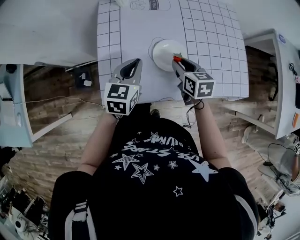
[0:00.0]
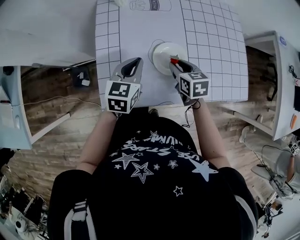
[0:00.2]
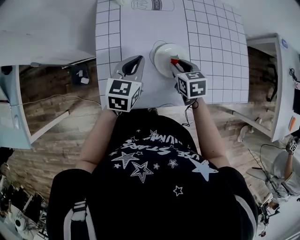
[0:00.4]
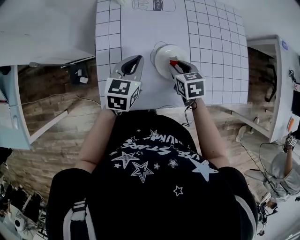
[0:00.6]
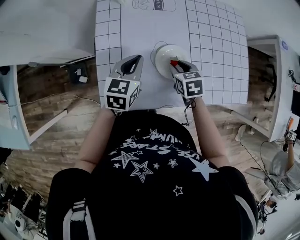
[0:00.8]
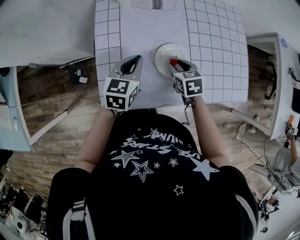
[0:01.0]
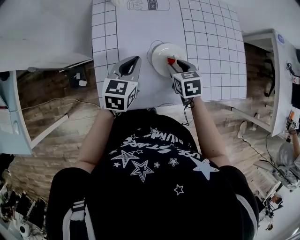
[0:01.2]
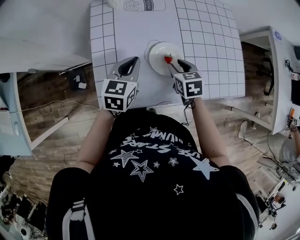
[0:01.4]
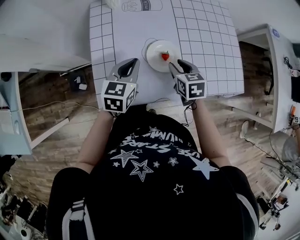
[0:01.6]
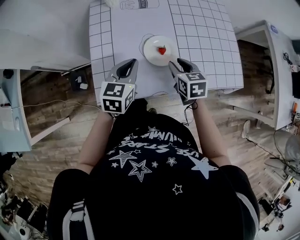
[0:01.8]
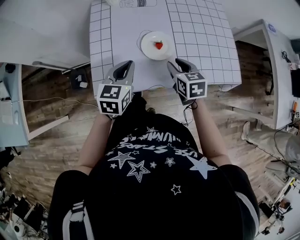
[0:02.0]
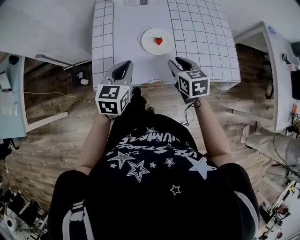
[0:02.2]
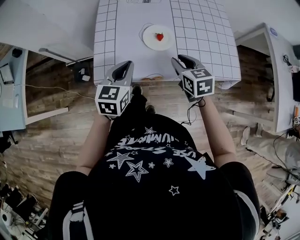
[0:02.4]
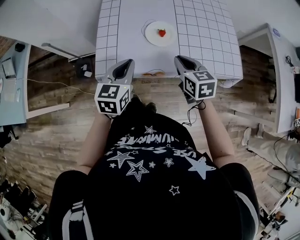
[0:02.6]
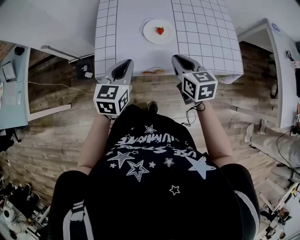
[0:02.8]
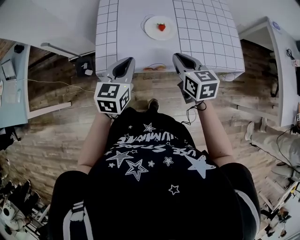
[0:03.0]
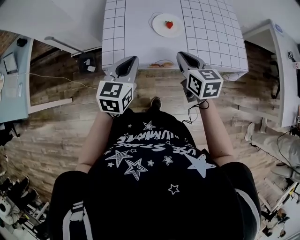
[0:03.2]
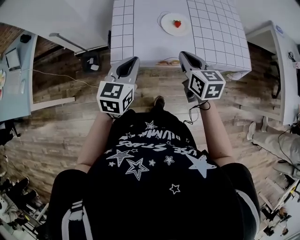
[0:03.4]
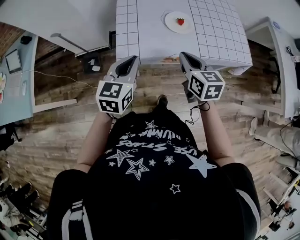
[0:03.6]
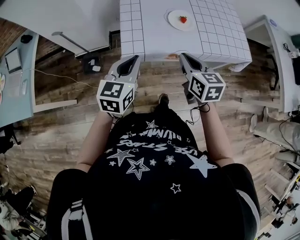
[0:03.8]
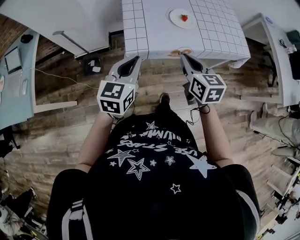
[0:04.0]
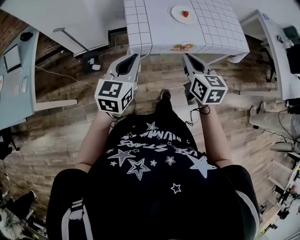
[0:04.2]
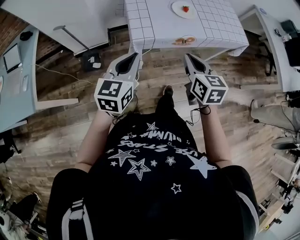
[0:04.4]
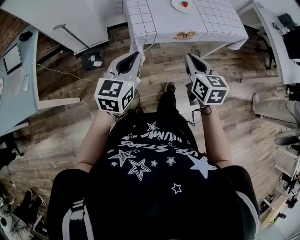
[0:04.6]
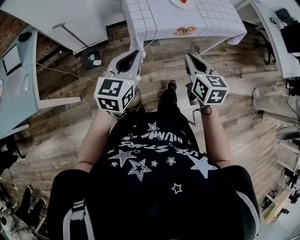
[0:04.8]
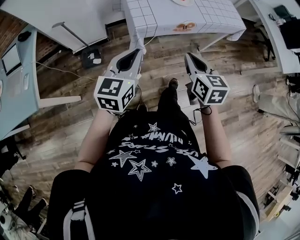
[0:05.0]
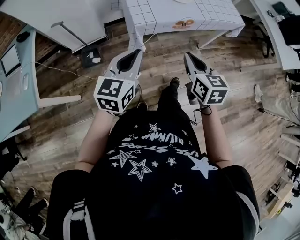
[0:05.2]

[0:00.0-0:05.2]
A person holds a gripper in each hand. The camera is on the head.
0:01.8 to 0:03.4: The left gripper goes roughly 15 cm backward and to the left; the right gripper travels upward, backward and to the left by about 15 cm, and closes up.
0:03.4 to 0:05.2: The two grippers go some 25 cm backward and to the left.

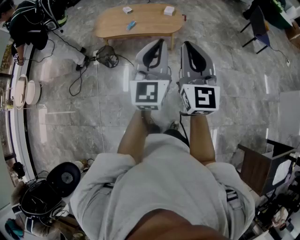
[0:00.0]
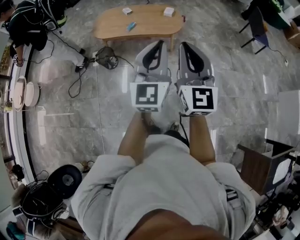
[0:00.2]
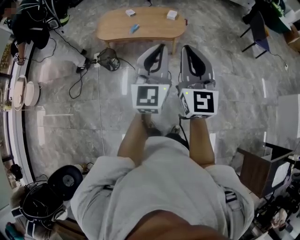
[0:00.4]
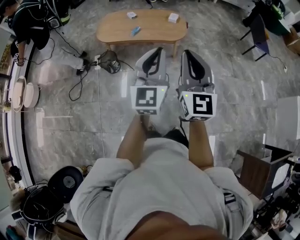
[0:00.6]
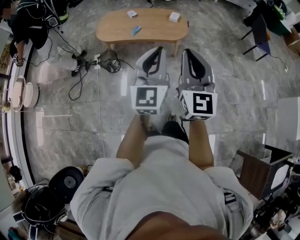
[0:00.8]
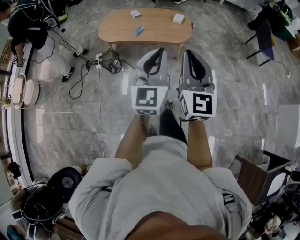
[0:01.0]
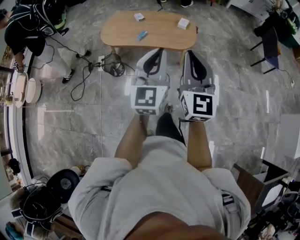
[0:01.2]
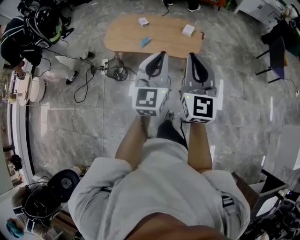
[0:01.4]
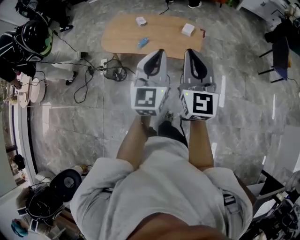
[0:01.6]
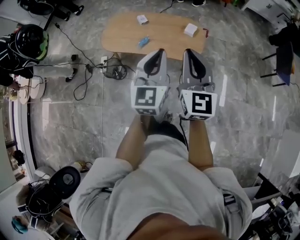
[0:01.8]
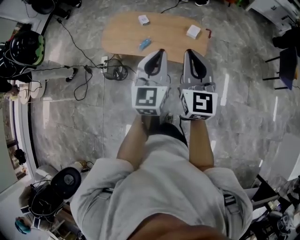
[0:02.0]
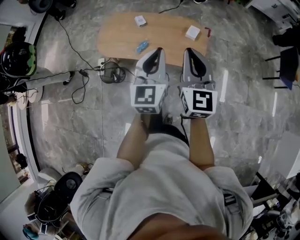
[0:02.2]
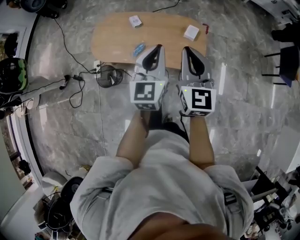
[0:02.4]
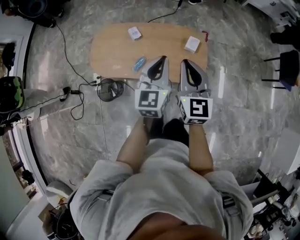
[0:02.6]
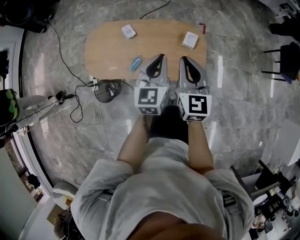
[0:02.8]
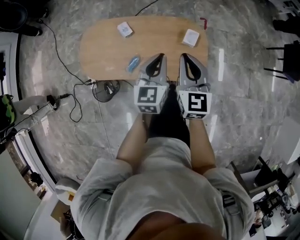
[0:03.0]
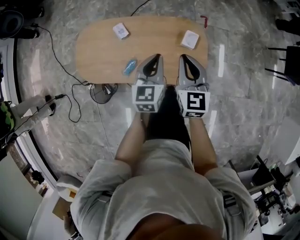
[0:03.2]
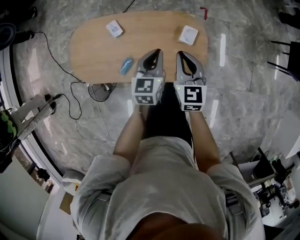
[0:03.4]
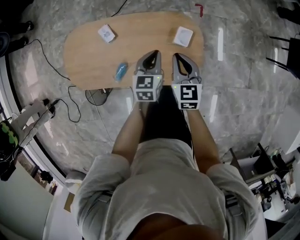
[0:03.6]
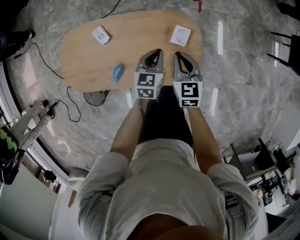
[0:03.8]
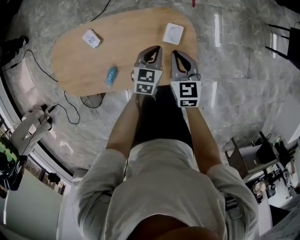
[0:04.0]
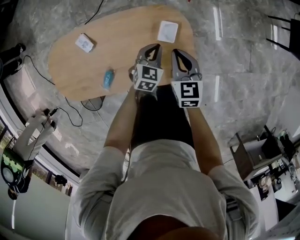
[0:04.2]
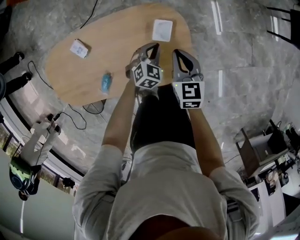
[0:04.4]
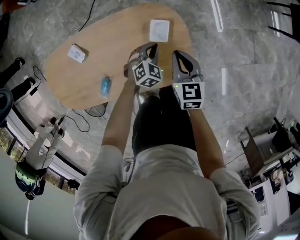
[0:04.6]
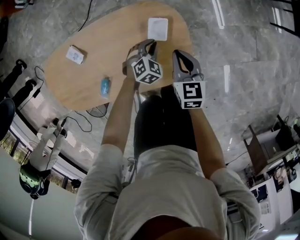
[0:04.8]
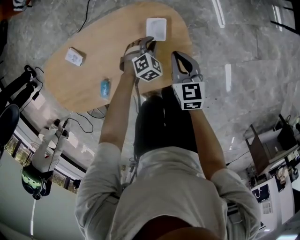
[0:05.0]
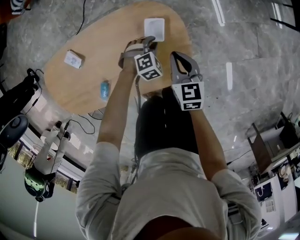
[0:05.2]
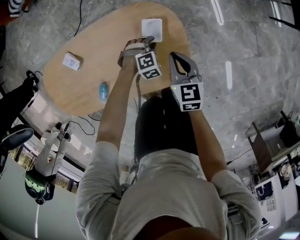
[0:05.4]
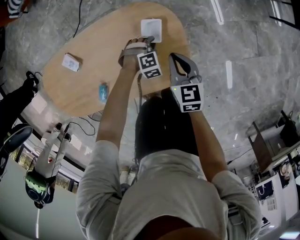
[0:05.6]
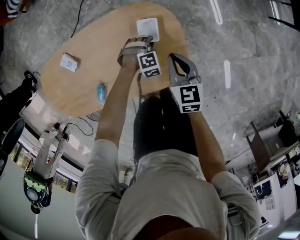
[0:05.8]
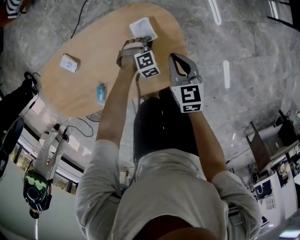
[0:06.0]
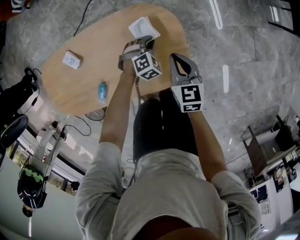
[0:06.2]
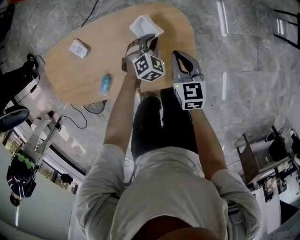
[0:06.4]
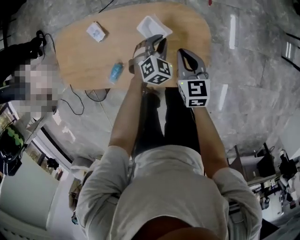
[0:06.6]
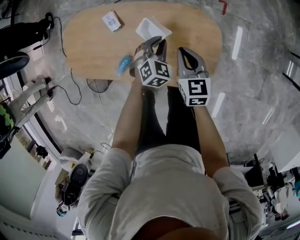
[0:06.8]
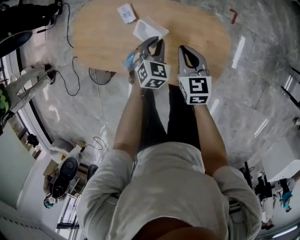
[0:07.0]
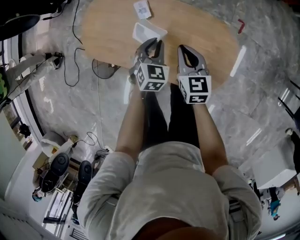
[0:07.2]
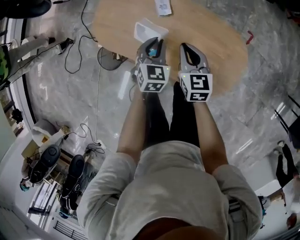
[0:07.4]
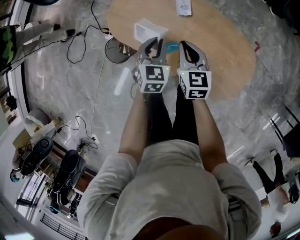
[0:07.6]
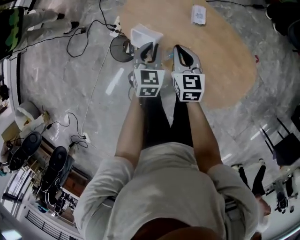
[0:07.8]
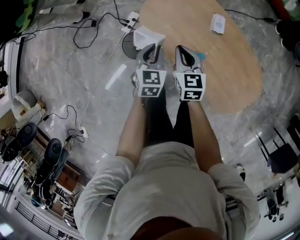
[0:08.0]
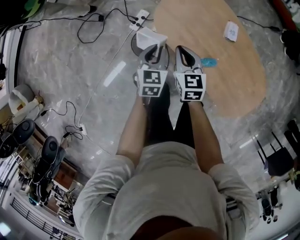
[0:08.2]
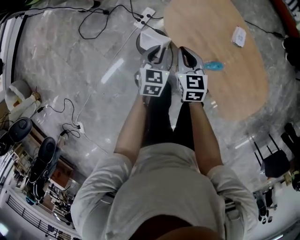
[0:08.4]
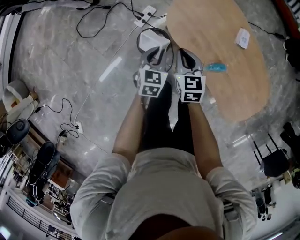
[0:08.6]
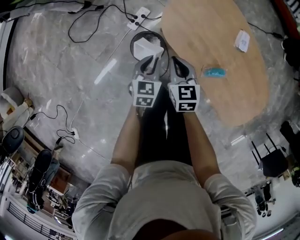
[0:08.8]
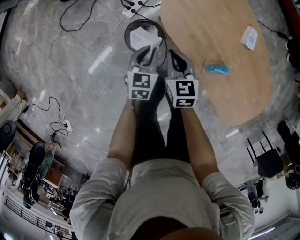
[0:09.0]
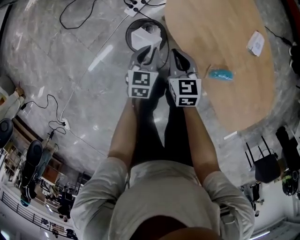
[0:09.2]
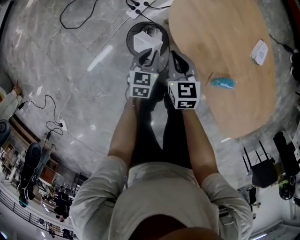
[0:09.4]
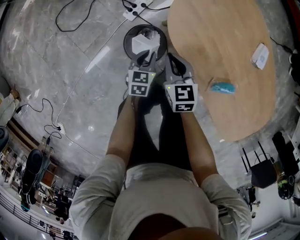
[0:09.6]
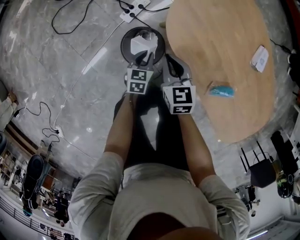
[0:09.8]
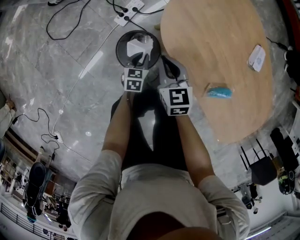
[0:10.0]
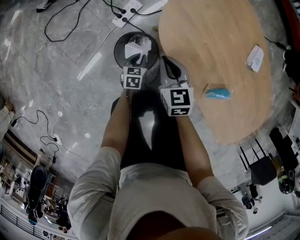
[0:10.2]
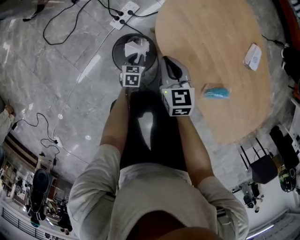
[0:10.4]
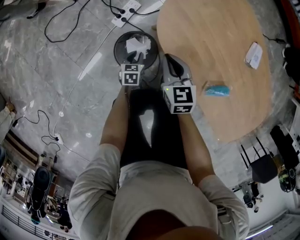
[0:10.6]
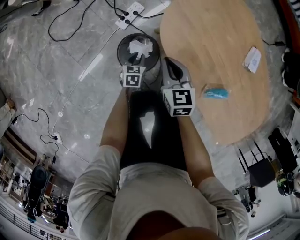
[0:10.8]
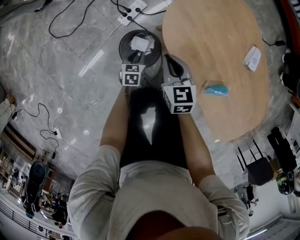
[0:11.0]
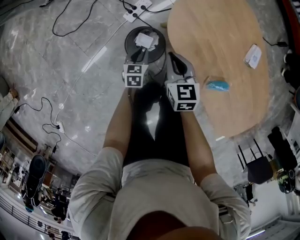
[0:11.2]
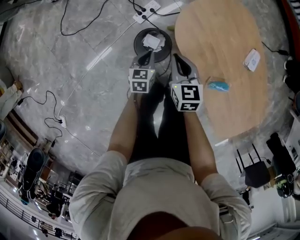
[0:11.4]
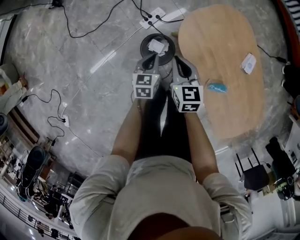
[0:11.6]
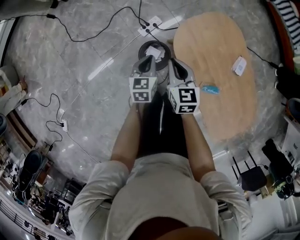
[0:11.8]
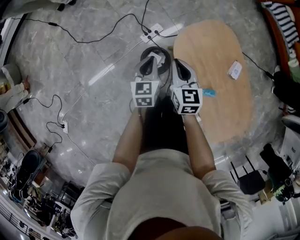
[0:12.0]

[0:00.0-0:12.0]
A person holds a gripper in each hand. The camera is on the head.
0:00.0 to 0:01.6: Both grippers travel together forward, about 30 cm.
0:01.6 to 0:03.0: Both grippers are carried forward, roughly 40 cm. The two grippers go roughly 20 cm downward. The right gripper turns by some 20 degrees; the left gripper swivels approximately 20 degrees.
0:03.0 to 0:04.4: Both grippers move downward, forward and to the right, some 35 cm. The right gripper rotates approximately 20 degrees, while the left gripper rotates approximately 50 degrees.
0:04.4 to 0:06.0: The right gripper goes roughly 5 cm downward; the left gripper is displaced downward by roughly 15 cm, and swivels about 40 degrees.
0:06.0 to 0:07.6: Both grippers are carried about 40 cm. The right gripper turns by about 40 degrees. Meanwhile the left gripper rotates around the line of its fingers by about 90 degrees, counterclockwise from behind.
0:07.6 to 0:09.0: The grippers both shift to the left and downward by approximately 40 cm. The left gripper changes its angle by roughly 20 degrees, while the right gripper swivels approximately 20 degrees.
0:09.0 to 0:10.4: The left gripper shifts some 30 cm downward, while the right gripper shifts some 10 cm downward and forward.
0:10.4 to 0:12.0: The right gripper goes approximately 30 cm upward. The left gripper shifts roughly 50 cm upward, and changes its angle by approximately 30 degrees.

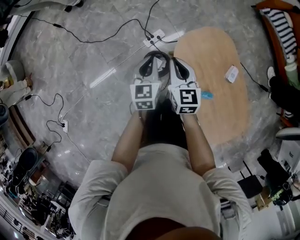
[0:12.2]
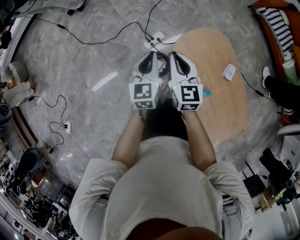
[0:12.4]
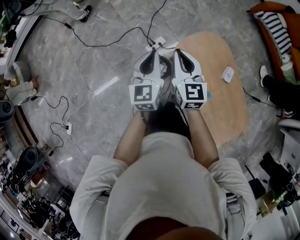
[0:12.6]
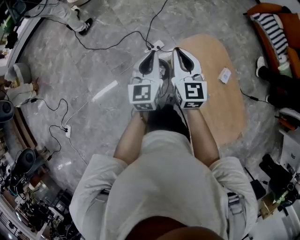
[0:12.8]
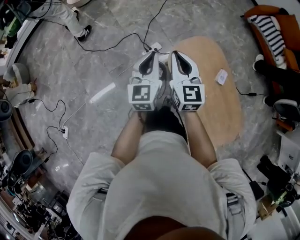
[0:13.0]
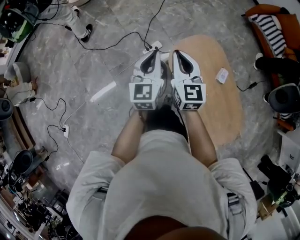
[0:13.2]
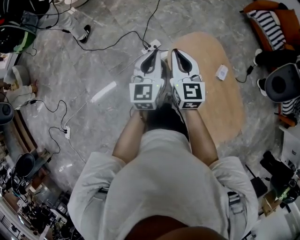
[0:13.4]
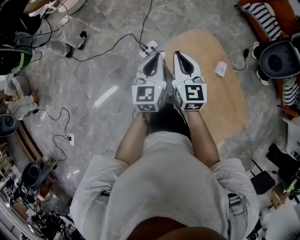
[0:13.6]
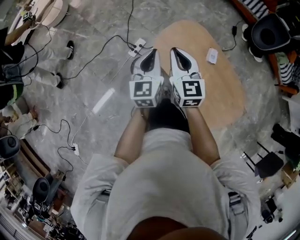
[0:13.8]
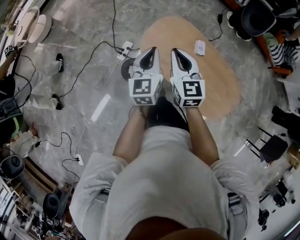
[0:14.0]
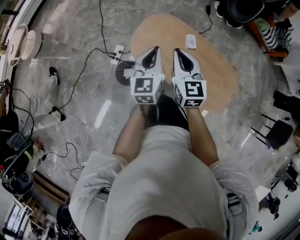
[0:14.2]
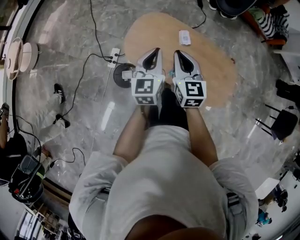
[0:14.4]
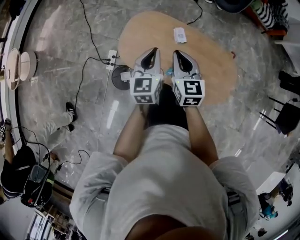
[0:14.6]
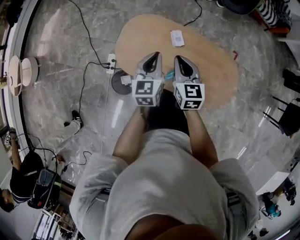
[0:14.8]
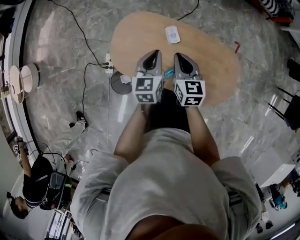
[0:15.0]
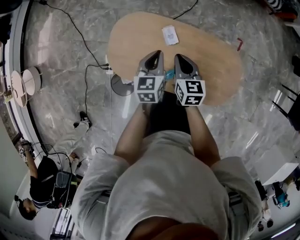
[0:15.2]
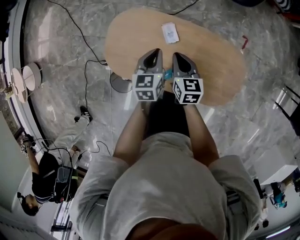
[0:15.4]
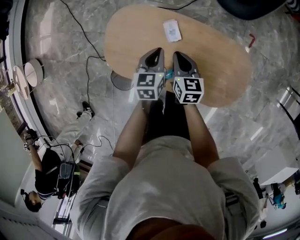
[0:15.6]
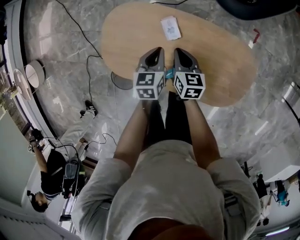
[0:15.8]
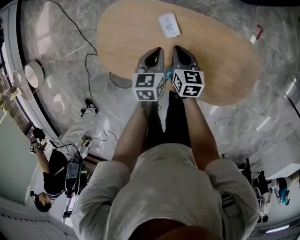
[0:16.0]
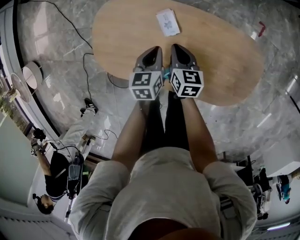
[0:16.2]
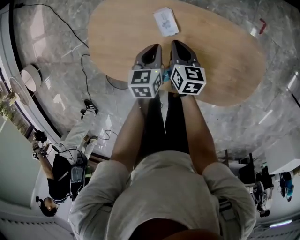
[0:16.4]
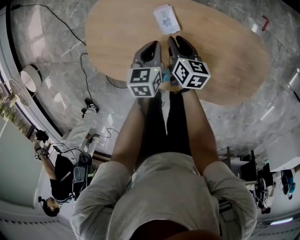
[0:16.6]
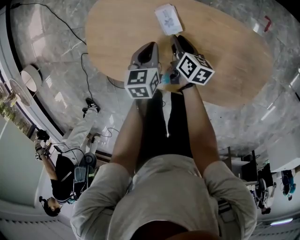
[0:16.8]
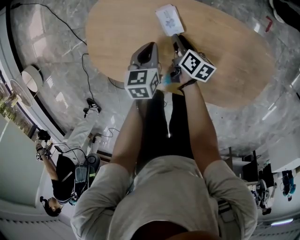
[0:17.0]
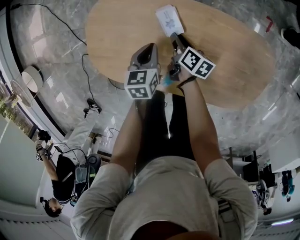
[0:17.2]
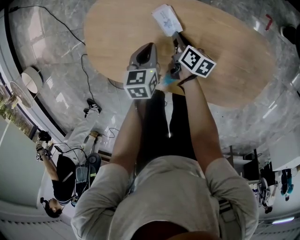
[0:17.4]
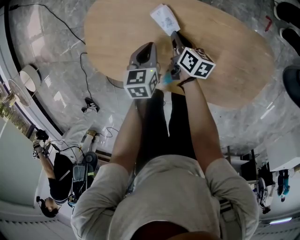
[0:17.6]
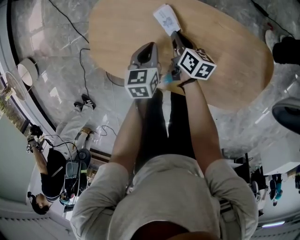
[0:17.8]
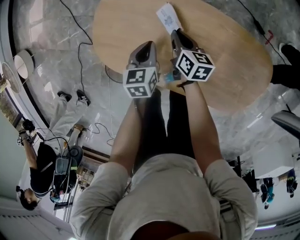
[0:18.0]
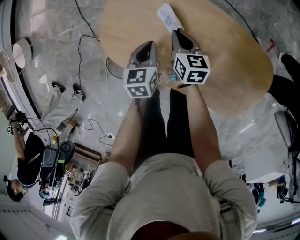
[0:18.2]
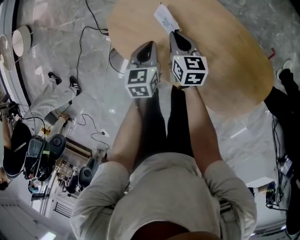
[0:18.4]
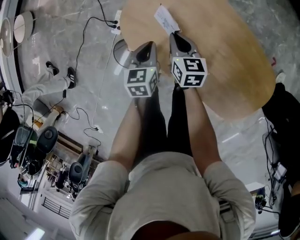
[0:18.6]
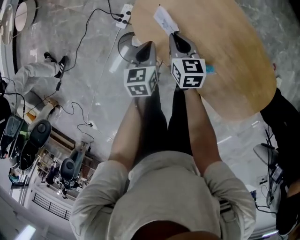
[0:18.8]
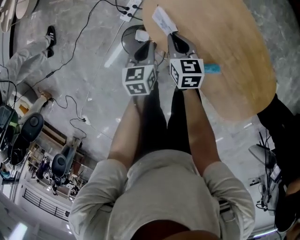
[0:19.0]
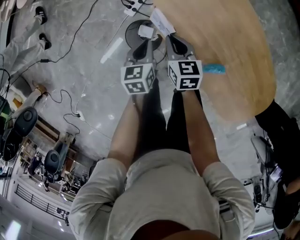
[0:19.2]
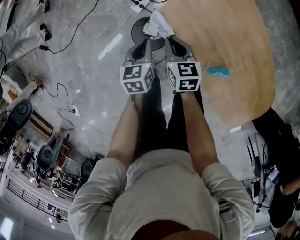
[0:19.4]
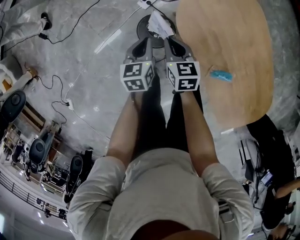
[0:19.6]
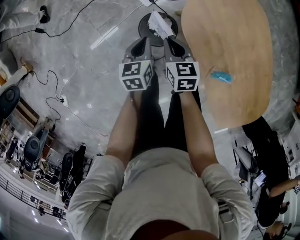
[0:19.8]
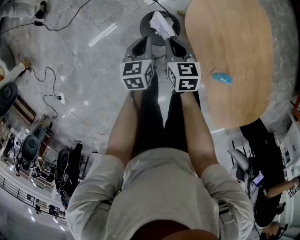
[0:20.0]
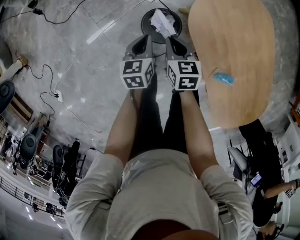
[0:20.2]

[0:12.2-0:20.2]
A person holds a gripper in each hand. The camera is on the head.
0:12.2 to 0:13.8: The grippers both shift upward and to the right by roughly 15 cm.
0:13.8 to 0:15.4: The right gripper changes place by roughly 40 cm, and changes its angle by roughly 40 degrees, while the left gripper moves some 40 cm, and swivels roughly 40 degrees.
0:15.4 to 0:17.0: Both grippers move downward, approximately 25 cm. The right gripper rolls clockwise, seen from behind, by about 50 degrees, and opens its fingers.
0:17.0 to 0:18.6: The right gripper shifts roughly 25 cm to the left and upward, twists some 50 degrees counterclockwise, seen from behind, and closes up. The left gripper is displaced to the left by about 20 cm, and changes its angle by some 20 degrees.
0:18.6 to 0:20.2: The left gripper changes place by about 35 cm, and rotates some 30 degrees. Meanwhile the right gripper moves about 35 cm, and rotates about 30 degrees.
